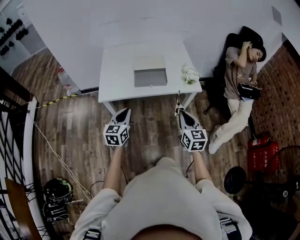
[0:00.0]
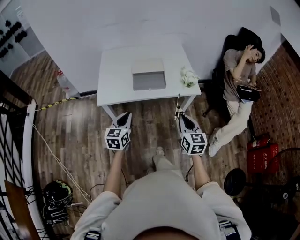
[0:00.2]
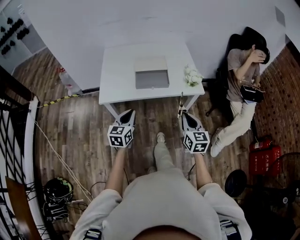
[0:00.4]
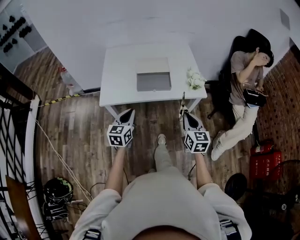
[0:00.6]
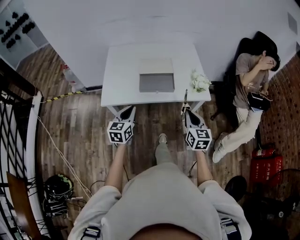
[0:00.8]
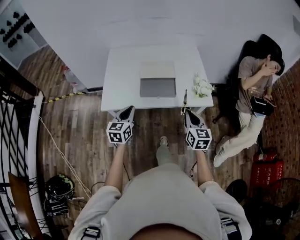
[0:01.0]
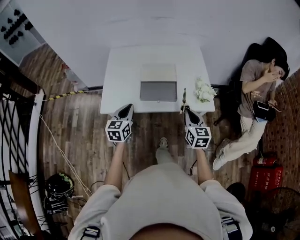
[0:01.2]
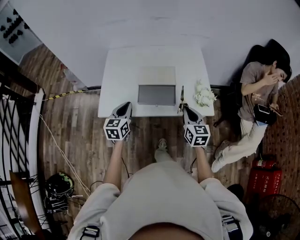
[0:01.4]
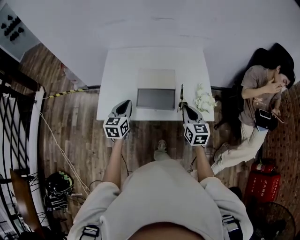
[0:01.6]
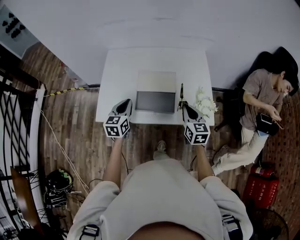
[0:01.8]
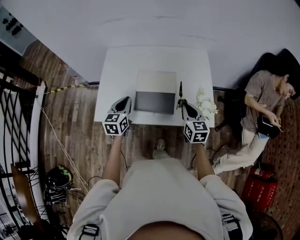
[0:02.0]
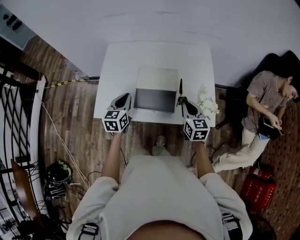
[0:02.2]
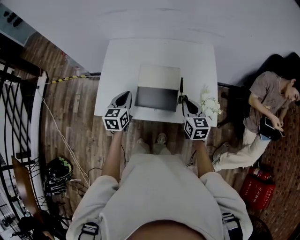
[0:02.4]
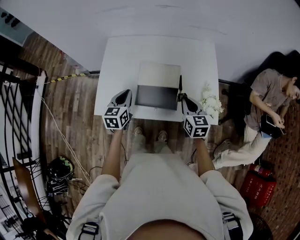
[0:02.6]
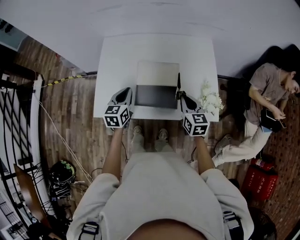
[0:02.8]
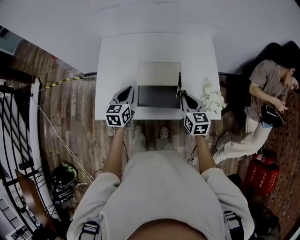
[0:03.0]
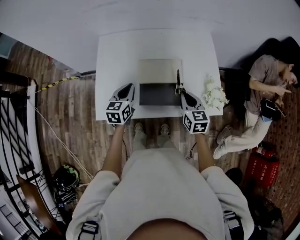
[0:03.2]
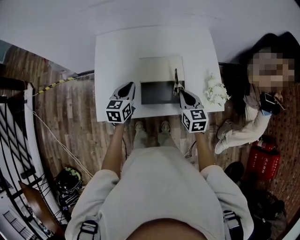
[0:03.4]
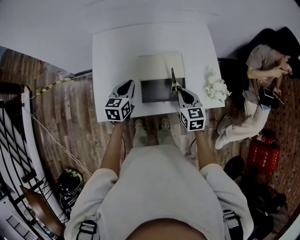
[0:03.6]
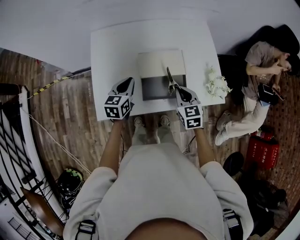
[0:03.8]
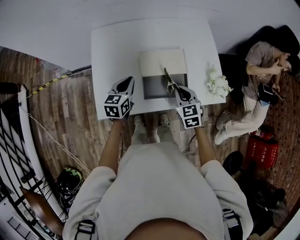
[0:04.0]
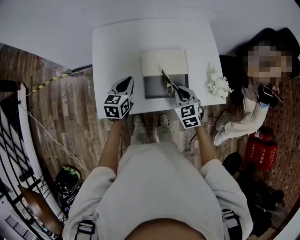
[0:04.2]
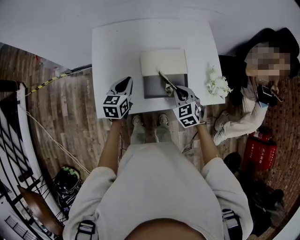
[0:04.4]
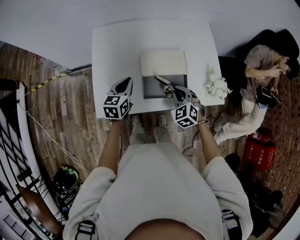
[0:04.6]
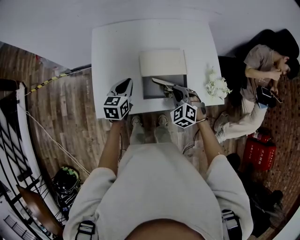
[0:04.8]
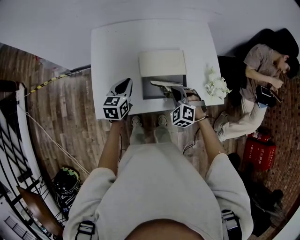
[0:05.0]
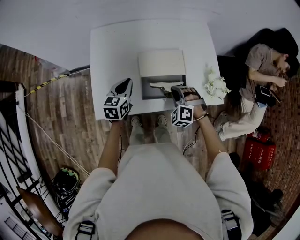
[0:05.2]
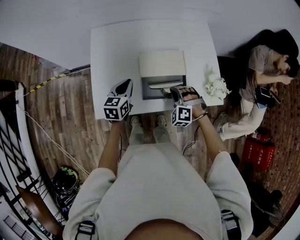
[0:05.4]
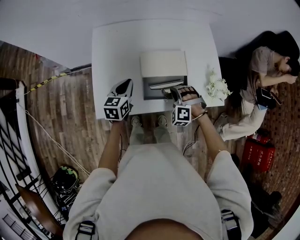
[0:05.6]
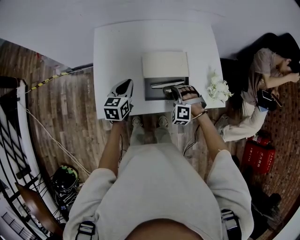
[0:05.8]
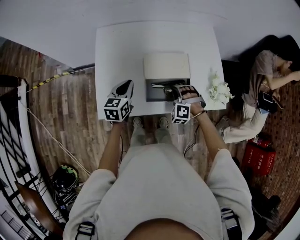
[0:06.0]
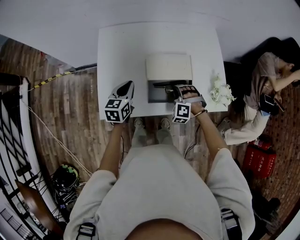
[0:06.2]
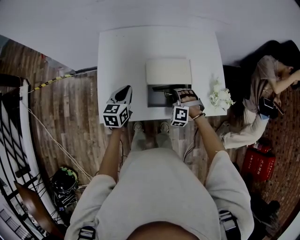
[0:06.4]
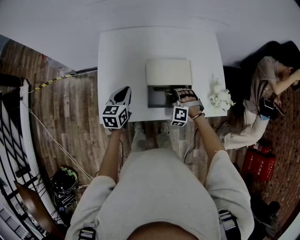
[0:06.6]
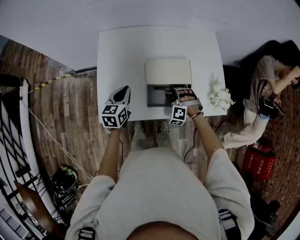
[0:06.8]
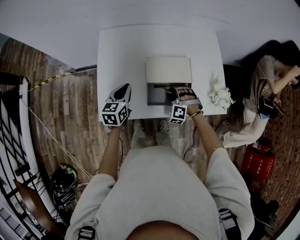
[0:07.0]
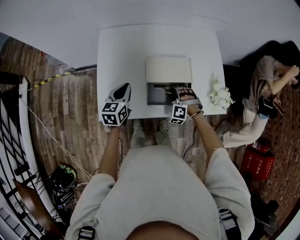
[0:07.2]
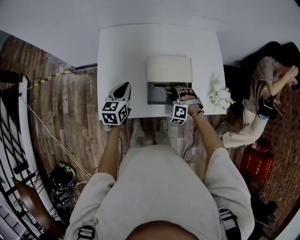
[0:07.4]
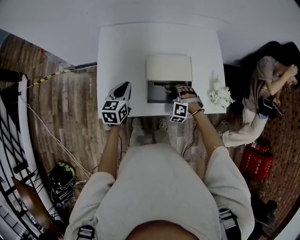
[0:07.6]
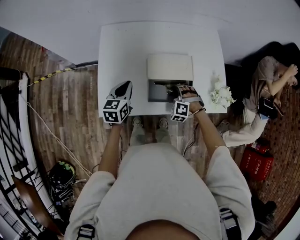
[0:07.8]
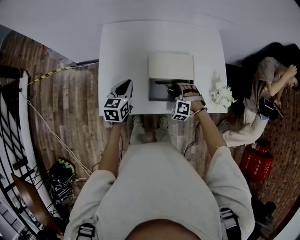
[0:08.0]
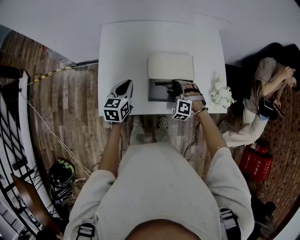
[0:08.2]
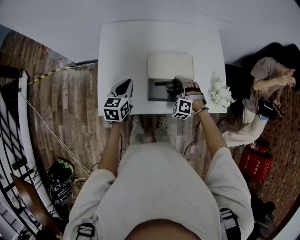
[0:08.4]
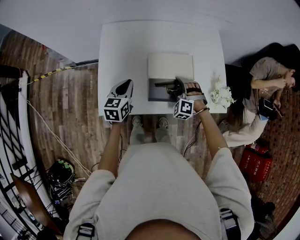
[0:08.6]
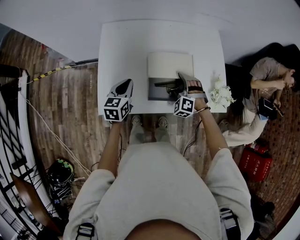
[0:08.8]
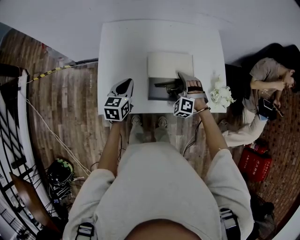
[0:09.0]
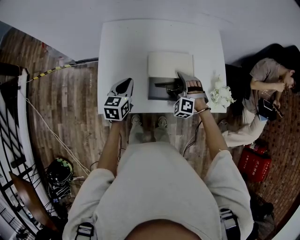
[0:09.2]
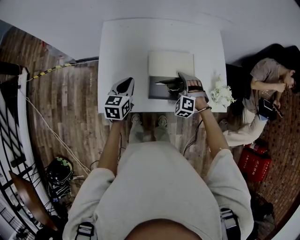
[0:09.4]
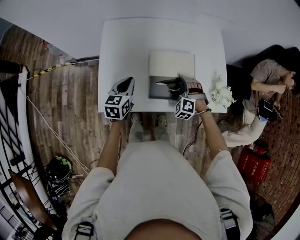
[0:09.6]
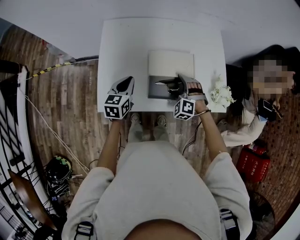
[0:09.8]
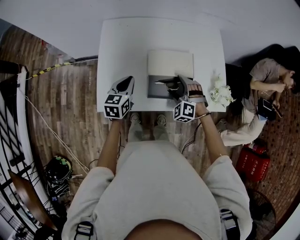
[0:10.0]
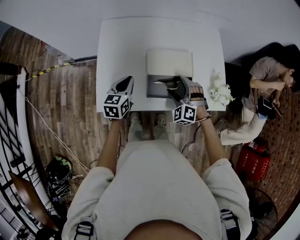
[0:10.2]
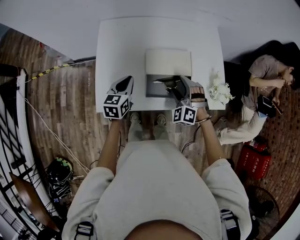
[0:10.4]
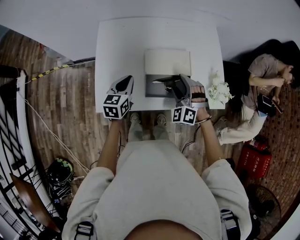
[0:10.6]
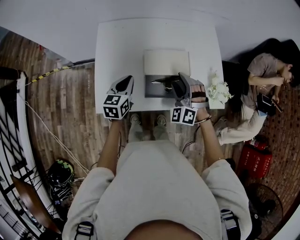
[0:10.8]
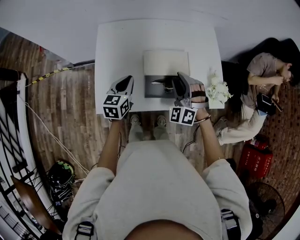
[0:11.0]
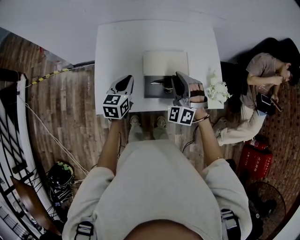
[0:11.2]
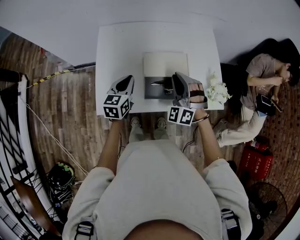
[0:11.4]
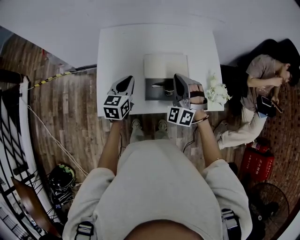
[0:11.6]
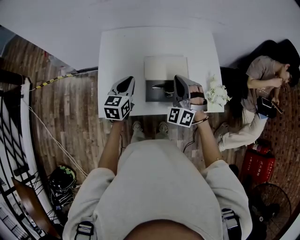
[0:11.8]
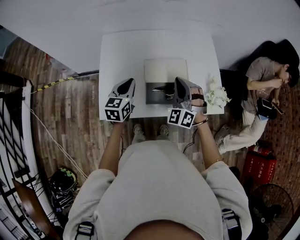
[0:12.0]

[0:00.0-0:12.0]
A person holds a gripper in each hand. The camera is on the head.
0:00.0 to 0:01.6: The two grippers go approximately 30 cm forward.
0:01.6 to 0:03.0: Both grippers move forward, about 10 cm.
0:03.0 to 0:04.4: The left gripper moves to the left, about 5 cm, while the right gripper shifts approximately 10 cm to the left, and turns by some 30 degrees.
0:04.4 to 0:06.0: The right gripper travels downward by roughly 5 cm, and twists approximately 50 degrees counterclockwise, seen from behind.
0:06.0 to 0:07.6: There are only small adjustments of the grippers.
0:07.6 to 0:09.0: The right gripper opens up.
0:09.0 to 0:10.4: The right gripper travels upward by about 5 cm.
0:10.4 to 0:12.0: The left gripper travels upward by roughly 5 cm, while the right gripper moves upward, about 10 cm, changes its angle by approximately 20 degrees, and closes up.

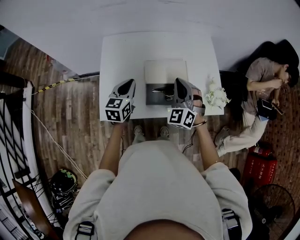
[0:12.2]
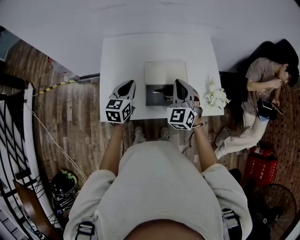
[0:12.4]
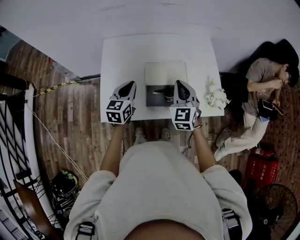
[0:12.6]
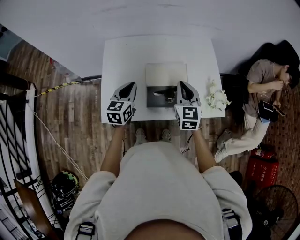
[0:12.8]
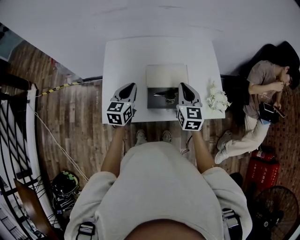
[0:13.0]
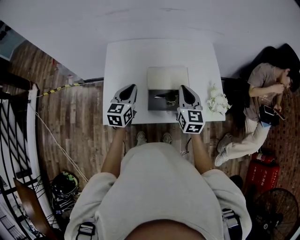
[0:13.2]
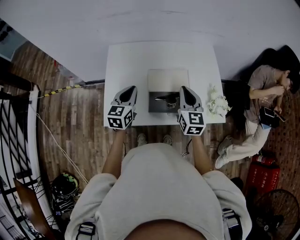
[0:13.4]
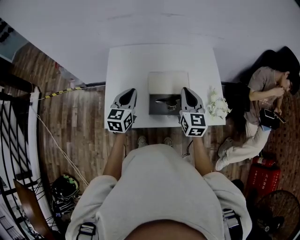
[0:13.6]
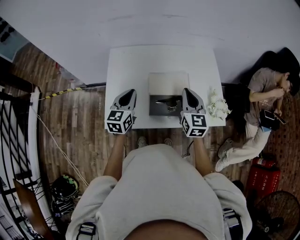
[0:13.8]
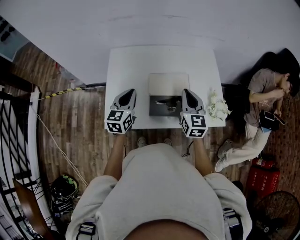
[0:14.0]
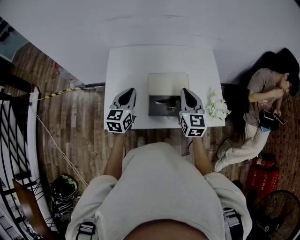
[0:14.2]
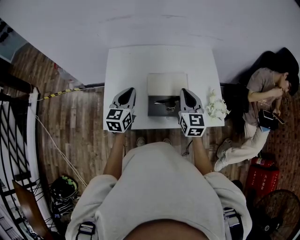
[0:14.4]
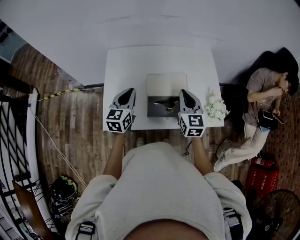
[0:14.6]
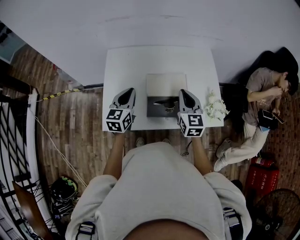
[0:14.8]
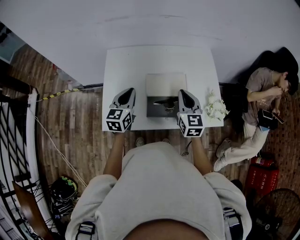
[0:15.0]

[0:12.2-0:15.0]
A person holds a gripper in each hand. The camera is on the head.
0:12.2 to 0:13.6: The right gripper rolls clockwise, seen from behind, by roughly 50 degrees.
0:13.6 to 0:15.0: The grippers stay close to where they were, moving slightly.

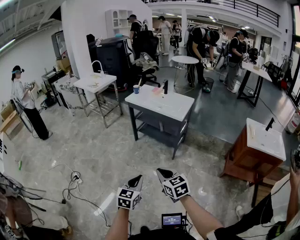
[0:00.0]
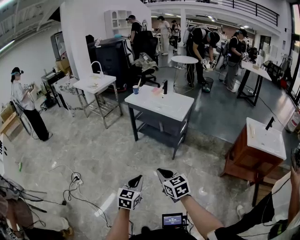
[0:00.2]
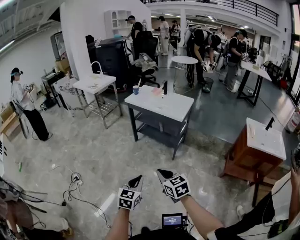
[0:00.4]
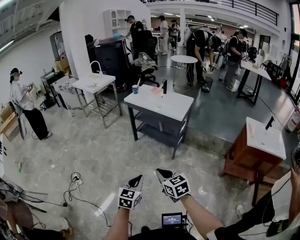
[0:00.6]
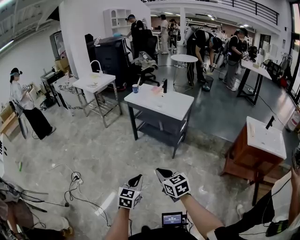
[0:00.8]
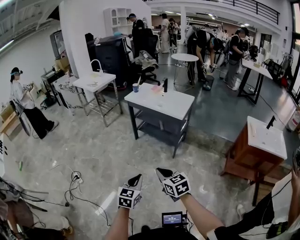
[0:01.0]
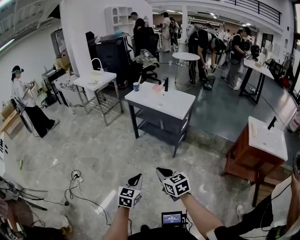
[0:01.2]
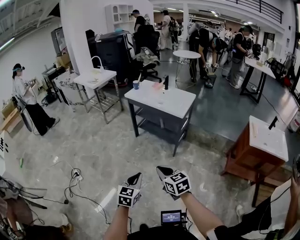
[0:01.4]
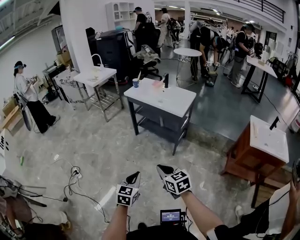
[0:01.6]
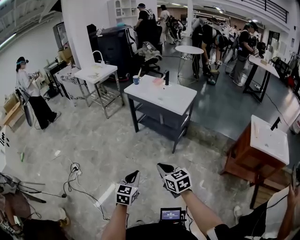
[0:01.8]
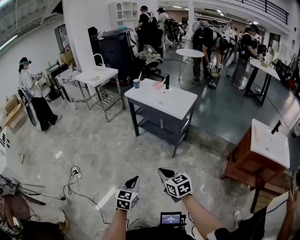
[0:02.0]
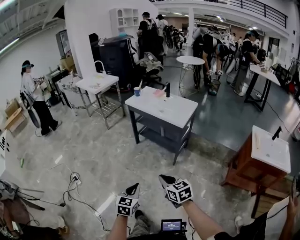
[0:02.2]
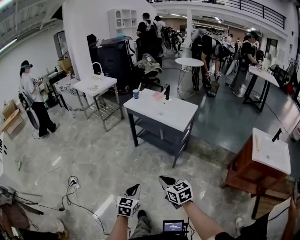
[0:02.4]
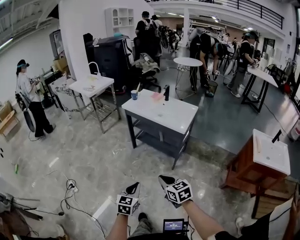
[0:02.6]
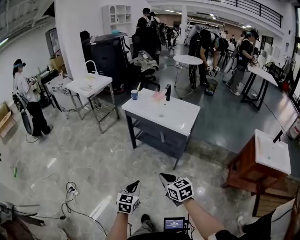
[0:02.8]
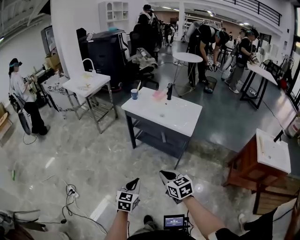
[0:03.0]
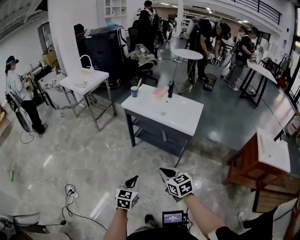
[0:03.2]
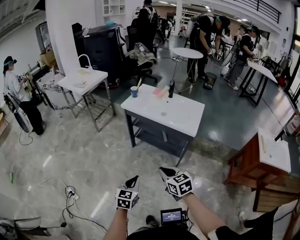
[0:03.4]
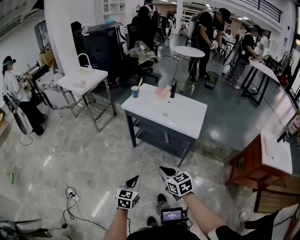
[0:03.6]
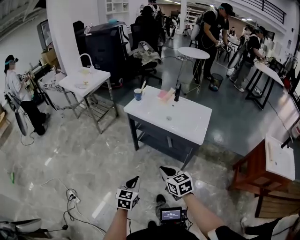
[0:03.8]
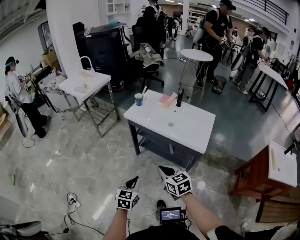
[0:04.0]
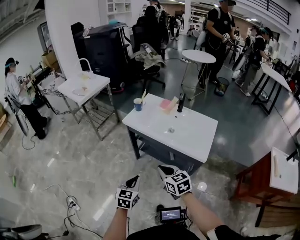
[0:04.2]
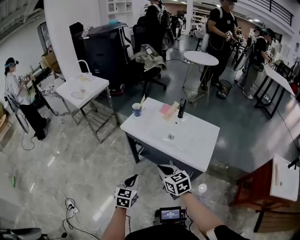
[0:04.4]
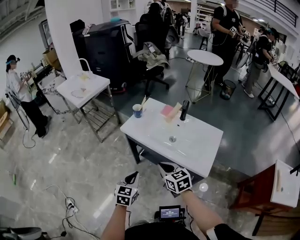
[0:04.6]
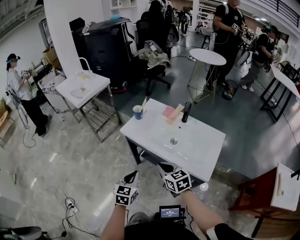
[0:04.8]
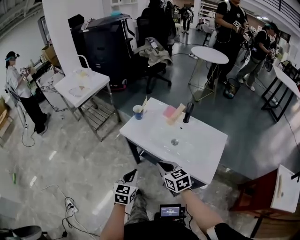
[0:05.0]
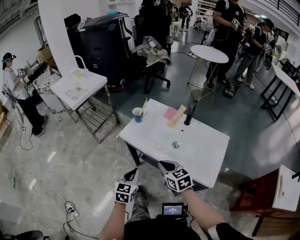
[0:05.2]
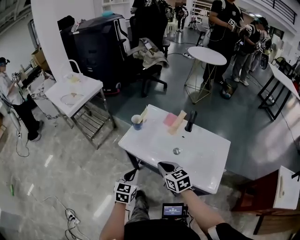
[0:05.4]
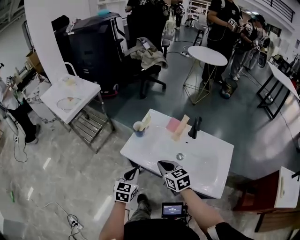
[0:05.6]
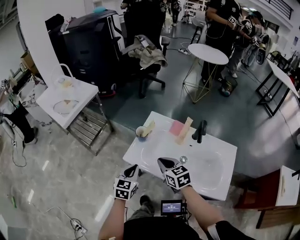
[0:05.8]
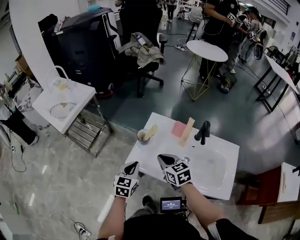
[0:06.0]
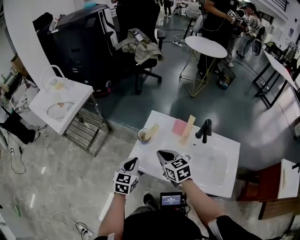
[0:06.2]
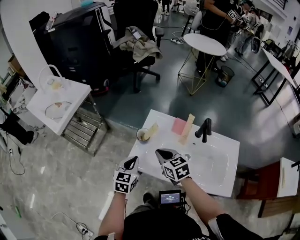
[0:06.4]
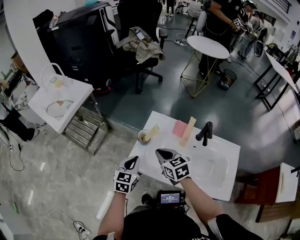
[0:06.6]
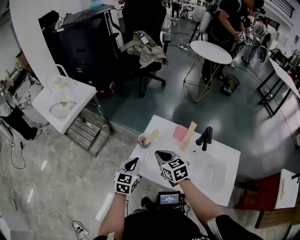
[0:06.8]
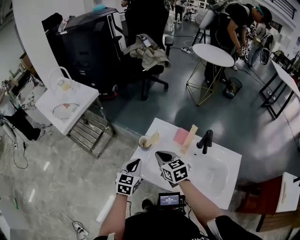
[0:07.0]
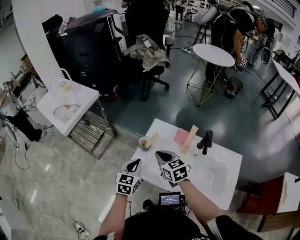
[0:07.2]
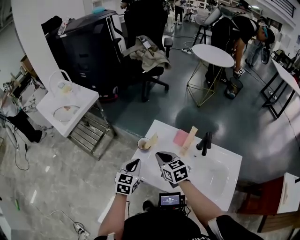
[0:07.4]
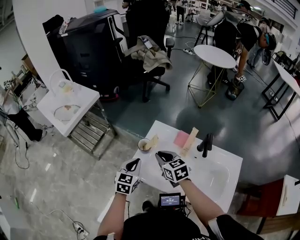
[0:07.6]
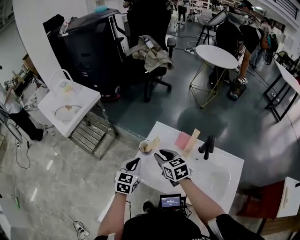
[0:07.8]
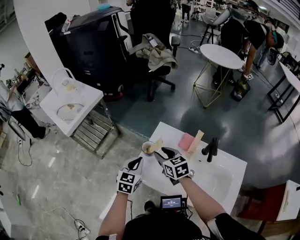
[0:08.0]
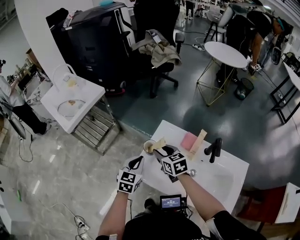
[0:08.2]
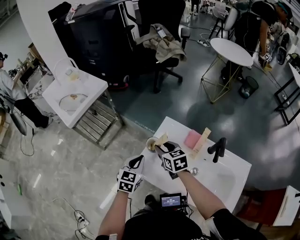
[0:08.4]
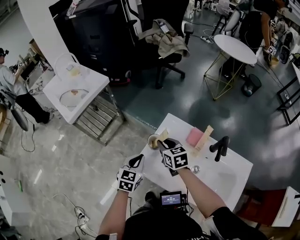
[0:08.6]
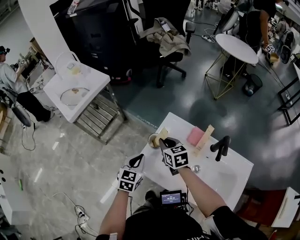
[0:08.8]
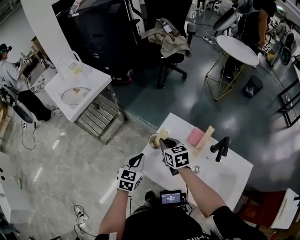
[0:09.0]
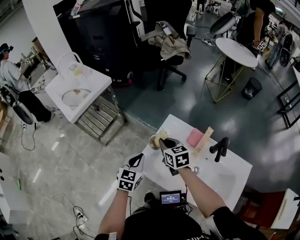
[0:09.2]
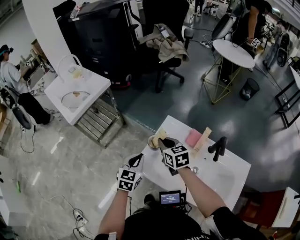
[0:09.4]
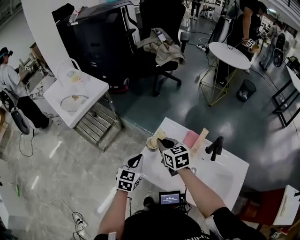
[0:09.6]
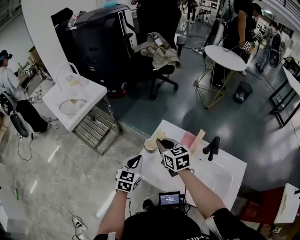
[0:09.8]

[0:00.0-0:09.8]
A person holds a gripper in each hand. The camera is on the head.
0:00.0 to 0:01.4: The grippers make only small movements.
0:01.4 to 0:02.8: The two grippers go roughly 15 cm forward.
0:02.8 to 0:04.2: Both grippers move forward, some 35 cm.
0:04.2 to 0:05.6: The two grippers go some 35 cm forward.
0:05.6 to 0:07.0: The two grippers go some 15 cm forward.
0:07.0 to 0:08.4: The right gripper travels forward by approximately 10 cm, and opens.
0:08.4 to 0:09.8: The right gripper shifts some 5 cm upward, and closes up.
